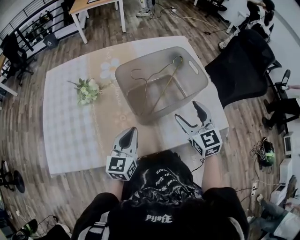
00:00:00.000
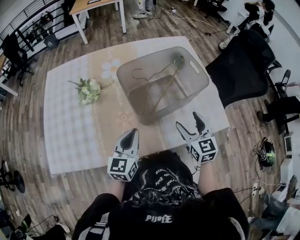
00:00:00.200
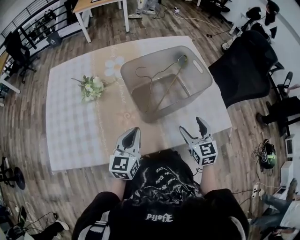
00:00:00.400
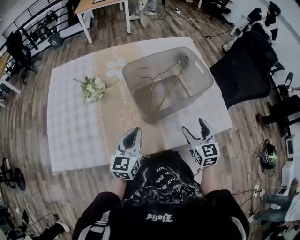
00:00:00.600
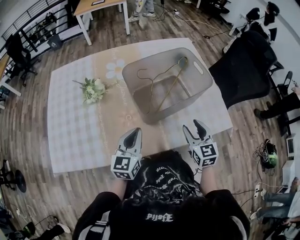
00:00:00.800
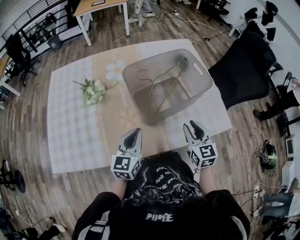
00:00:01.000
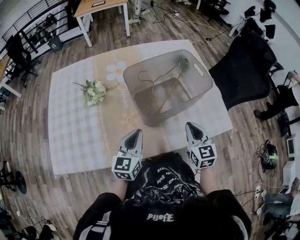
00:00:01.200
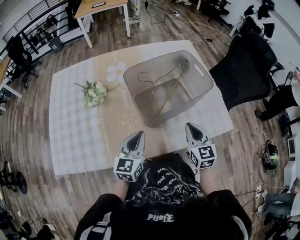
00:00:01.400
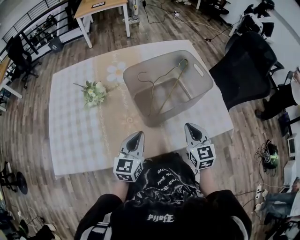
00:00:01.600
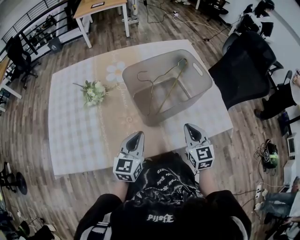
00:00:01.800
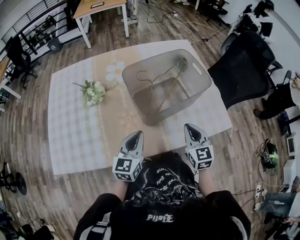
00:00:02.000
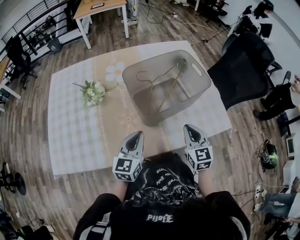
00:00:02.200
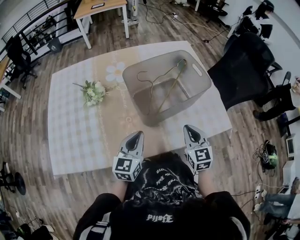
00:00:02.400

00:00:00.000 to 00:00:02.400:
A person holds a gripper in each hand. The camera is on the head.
00:00:00.000 to 00:00:01.200: The right gripper goes about 5 cm downward, and closes.
00:00:01.200 to 00:00:02.400: There are only small adjustments of the grippers.

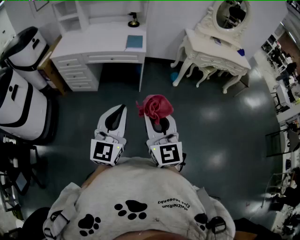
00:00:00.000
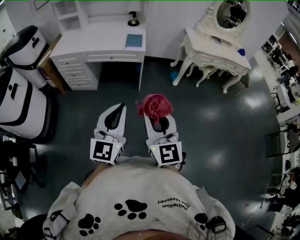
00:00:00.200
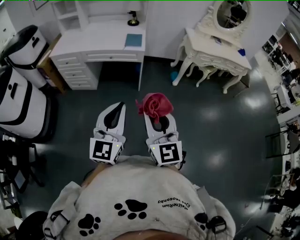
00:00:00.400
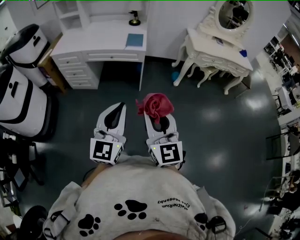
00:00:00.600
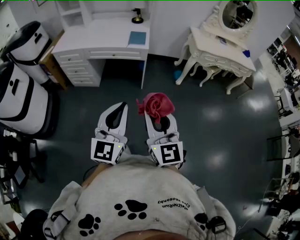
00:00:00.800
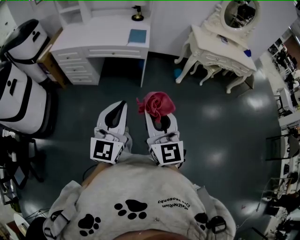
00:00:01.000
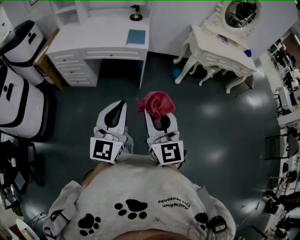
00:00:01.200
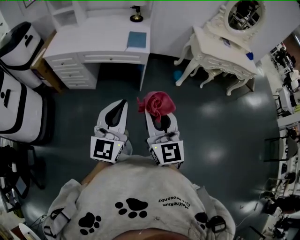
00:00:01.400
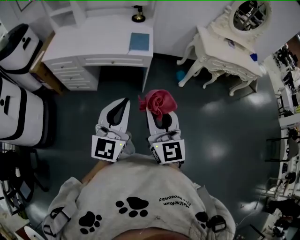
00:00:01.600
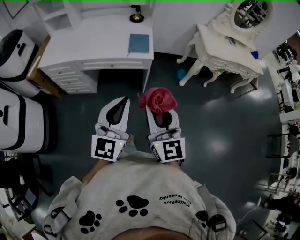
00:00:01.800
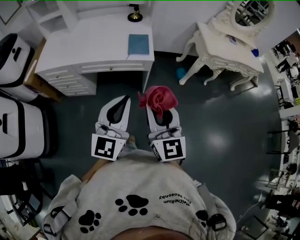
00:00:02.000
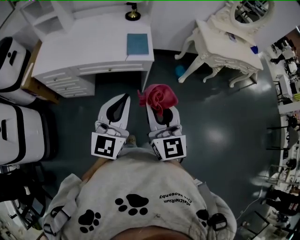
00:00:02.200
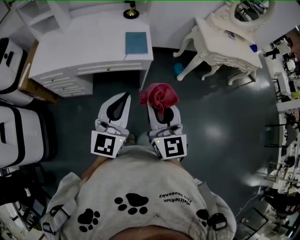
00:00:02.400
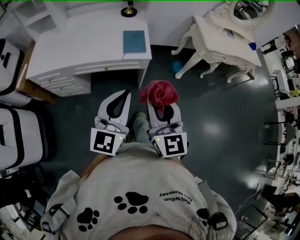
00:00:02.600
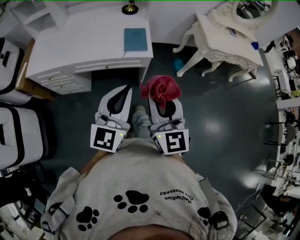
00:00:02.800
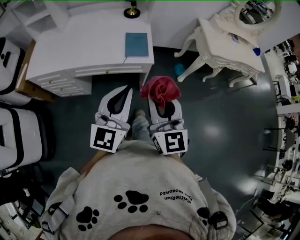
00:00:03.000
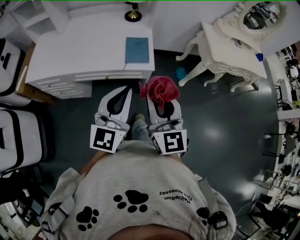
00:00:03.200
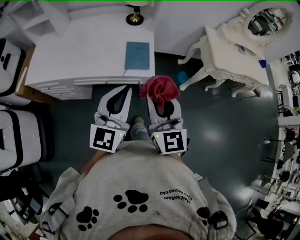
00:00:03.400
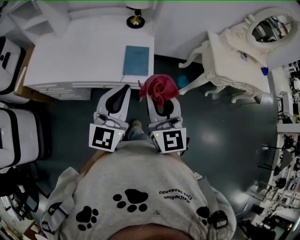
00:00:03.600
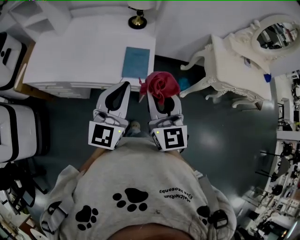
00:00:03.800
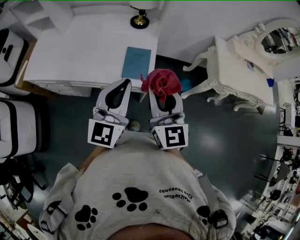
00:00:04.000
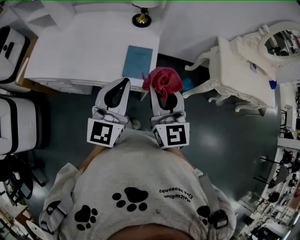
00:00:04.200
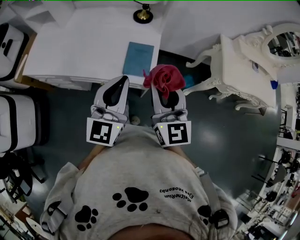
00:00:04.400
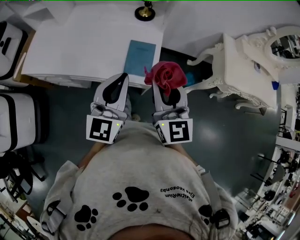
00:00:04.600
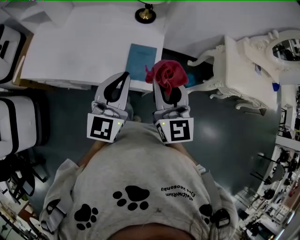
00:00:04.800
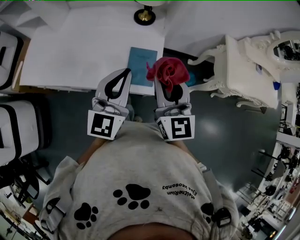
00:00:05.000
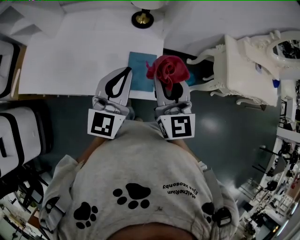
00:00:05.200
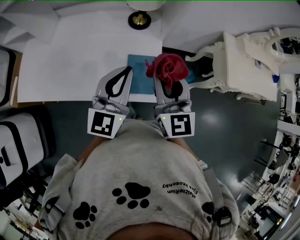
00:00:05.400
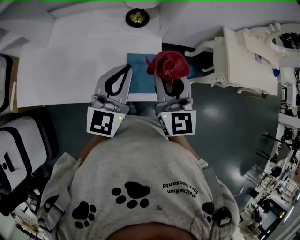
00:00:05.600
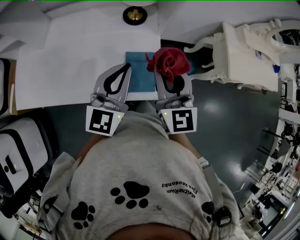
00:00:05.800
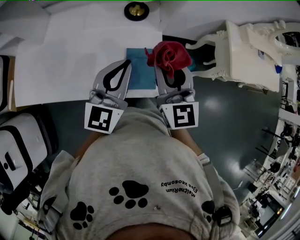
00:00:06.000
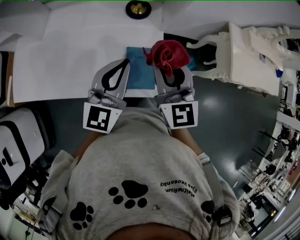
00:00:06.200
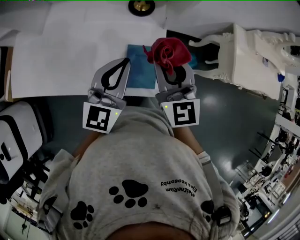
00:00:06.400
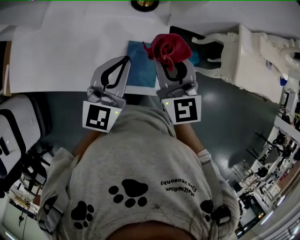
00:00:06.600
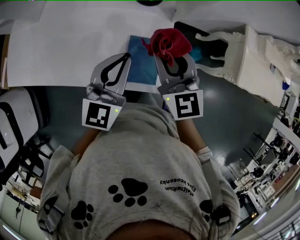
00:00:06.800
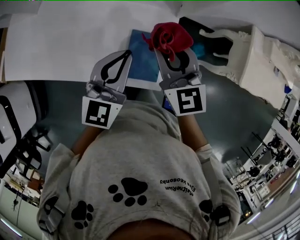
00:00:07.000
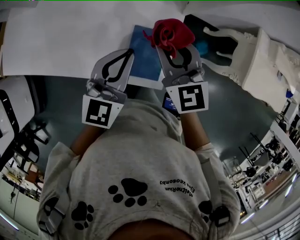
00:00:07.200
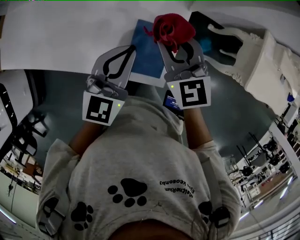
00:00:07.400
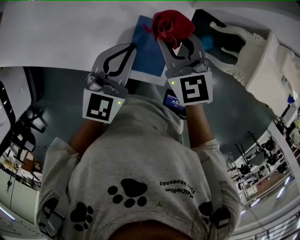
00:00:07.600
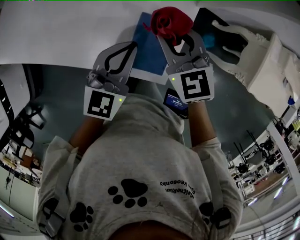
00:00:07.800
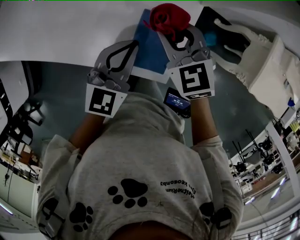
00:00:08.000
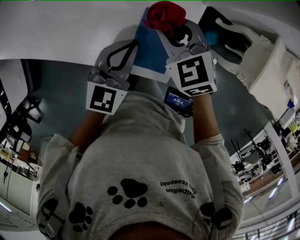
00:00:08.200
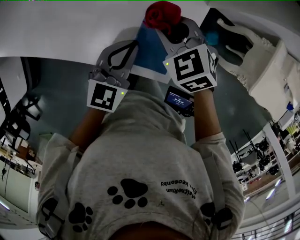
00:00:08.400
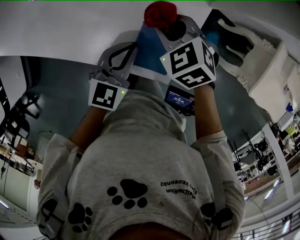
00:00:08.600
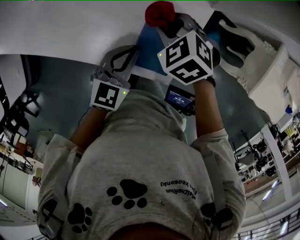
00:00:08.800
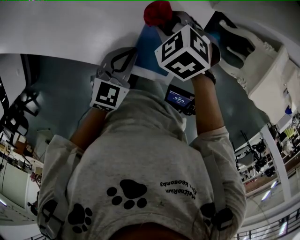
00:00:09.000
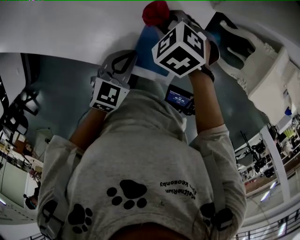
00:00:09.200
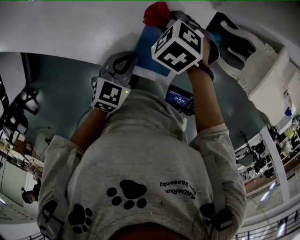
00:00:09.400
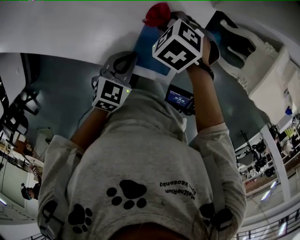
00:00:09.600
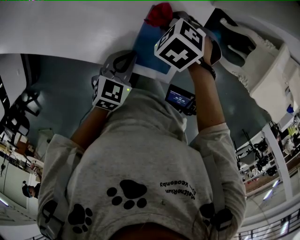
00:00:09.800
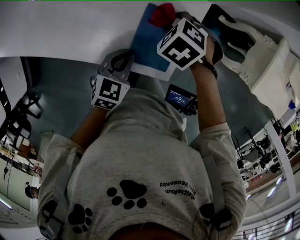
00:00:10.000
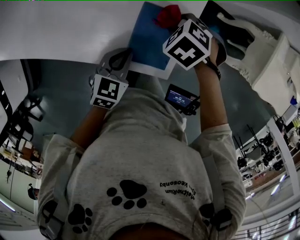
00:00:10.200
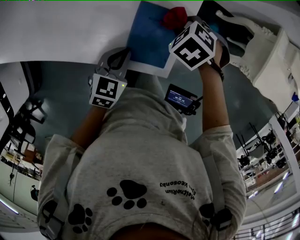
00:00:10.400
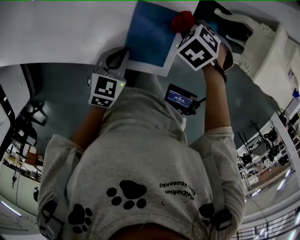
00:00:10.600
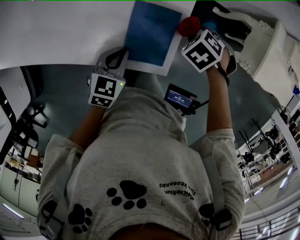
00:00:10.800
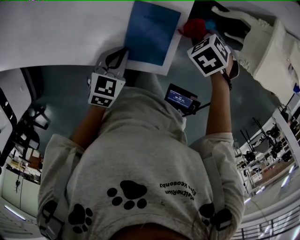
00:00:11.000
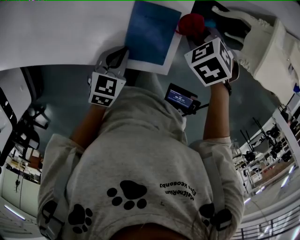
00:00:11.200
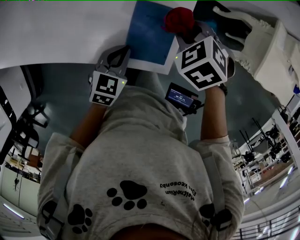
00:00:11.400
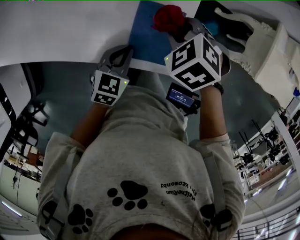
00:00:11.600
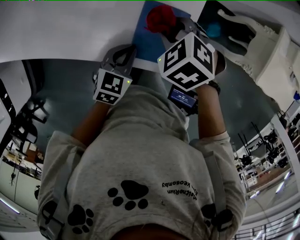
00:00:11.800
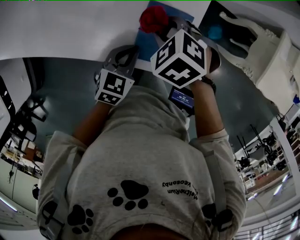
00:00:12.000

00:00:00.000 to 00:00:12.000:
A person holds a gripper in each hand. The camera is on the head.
00:00:00.000 to 00:00:01.600: The grippers both shift forward by about 20 cm.
00:00:01.600 to 00:00:03.000: Both grippers travel together forward, approximately 20 cm.
00:00:03.000 to 00:00:04.400: The grippers both shift forward by some 20 cm.
00:00:04.400 to 00:00:06.000: The grippers both shift forward by roughly 20 cm.
00:00:06.000 to 00:00:07.600: The left gripper shifts some 15 cm downward, while the right gripper heads downward and forward, covering some 15 cm, and swivels roughly 40 degrees.
00:00:07.600 to 00:00:09.000: Both grippers move downward, approximately 15 cm. The right gripper tips its fingers downward by approximately 40 degrees.
00:00:09.000 to 00:00:10.400: The right gripper moves roughly 10 cm.
00:00:10.400 to 00:00:12.000: The right gripper moves some 10 cm.

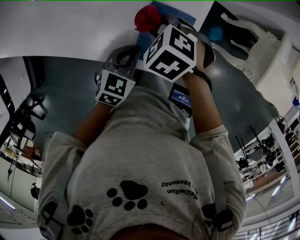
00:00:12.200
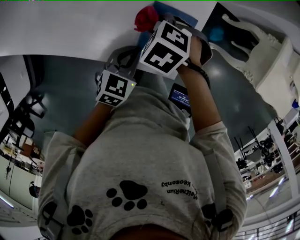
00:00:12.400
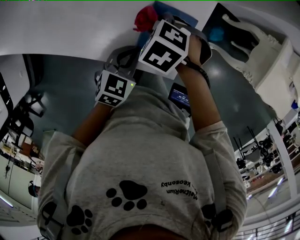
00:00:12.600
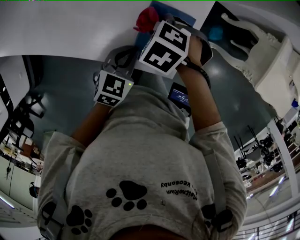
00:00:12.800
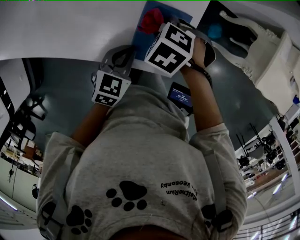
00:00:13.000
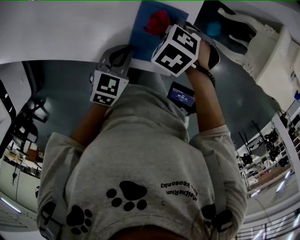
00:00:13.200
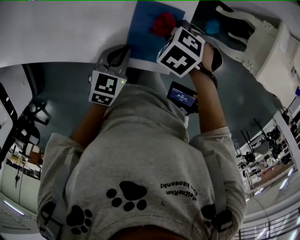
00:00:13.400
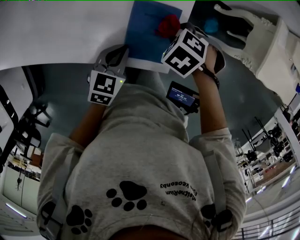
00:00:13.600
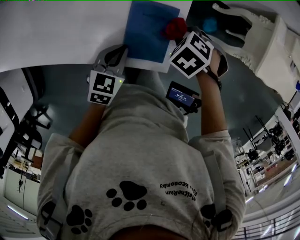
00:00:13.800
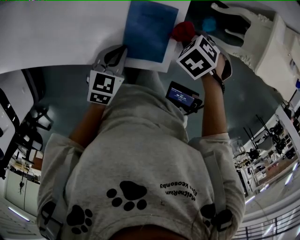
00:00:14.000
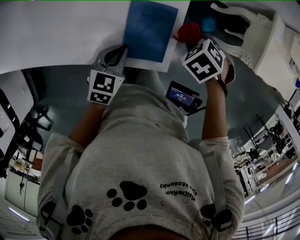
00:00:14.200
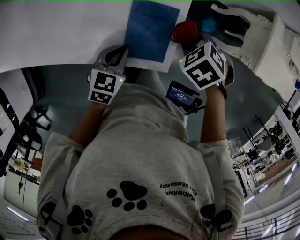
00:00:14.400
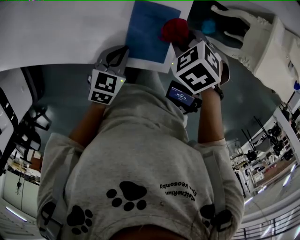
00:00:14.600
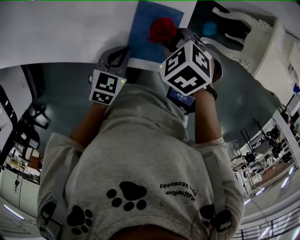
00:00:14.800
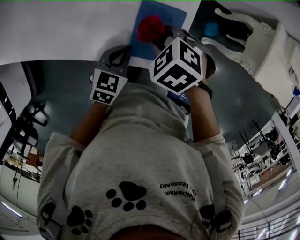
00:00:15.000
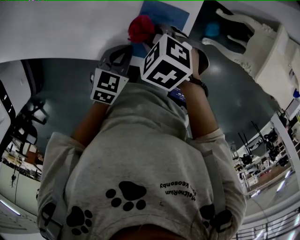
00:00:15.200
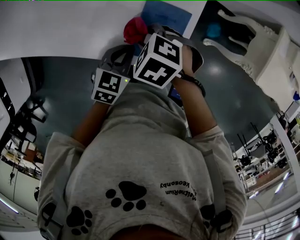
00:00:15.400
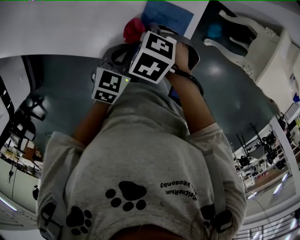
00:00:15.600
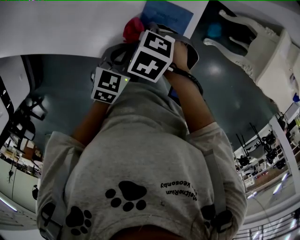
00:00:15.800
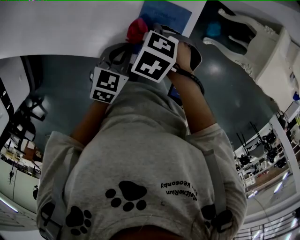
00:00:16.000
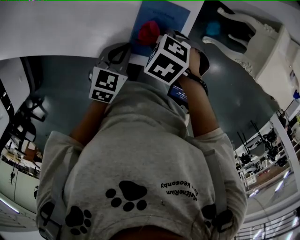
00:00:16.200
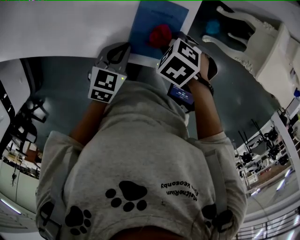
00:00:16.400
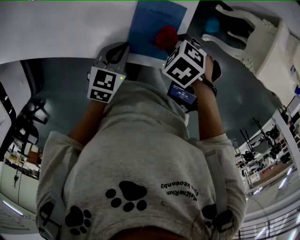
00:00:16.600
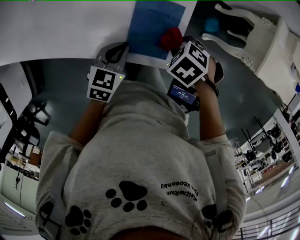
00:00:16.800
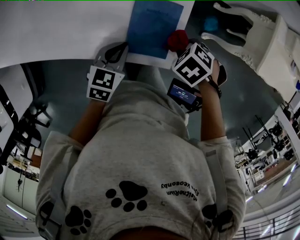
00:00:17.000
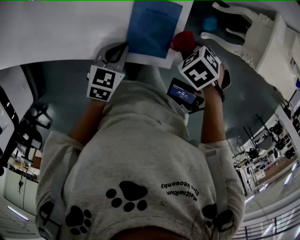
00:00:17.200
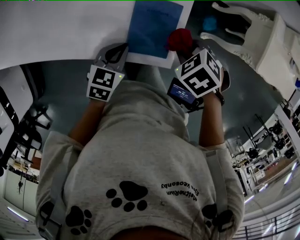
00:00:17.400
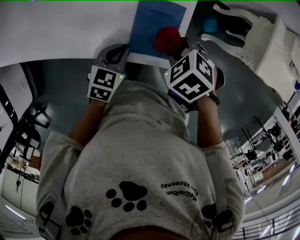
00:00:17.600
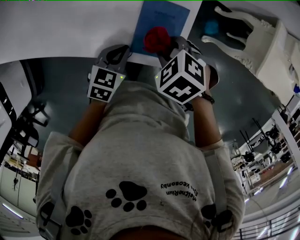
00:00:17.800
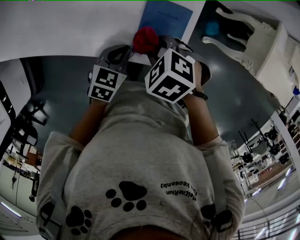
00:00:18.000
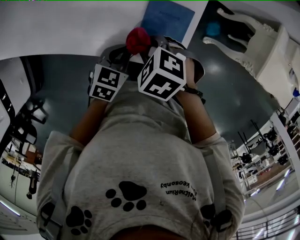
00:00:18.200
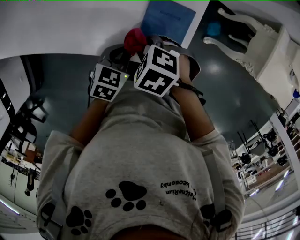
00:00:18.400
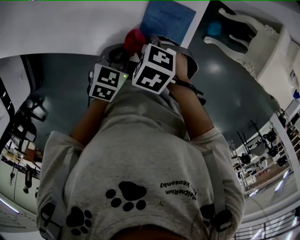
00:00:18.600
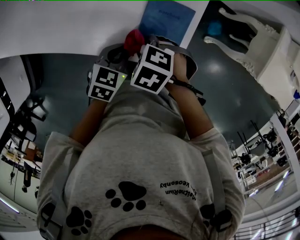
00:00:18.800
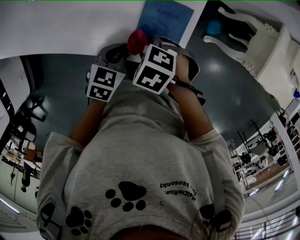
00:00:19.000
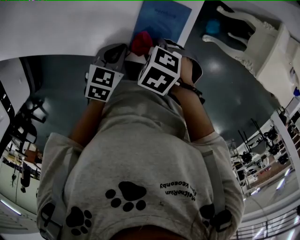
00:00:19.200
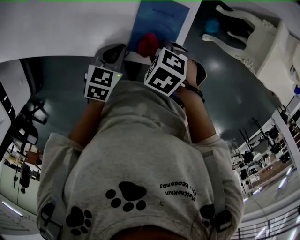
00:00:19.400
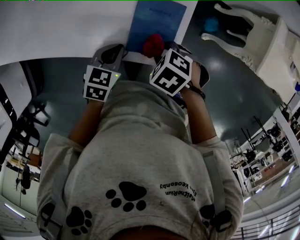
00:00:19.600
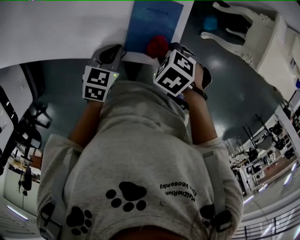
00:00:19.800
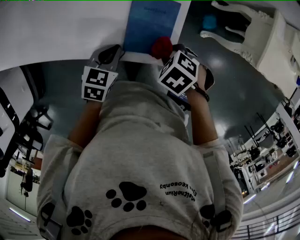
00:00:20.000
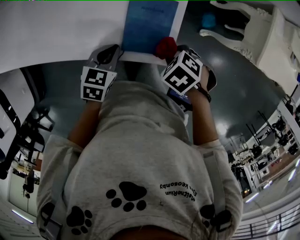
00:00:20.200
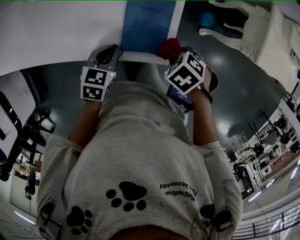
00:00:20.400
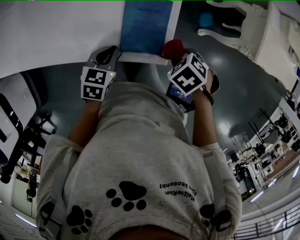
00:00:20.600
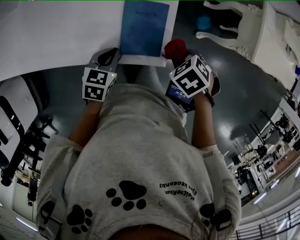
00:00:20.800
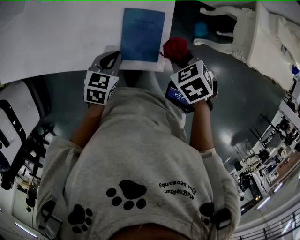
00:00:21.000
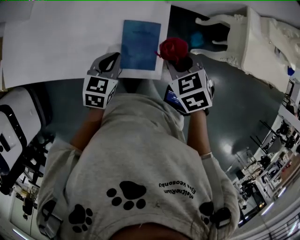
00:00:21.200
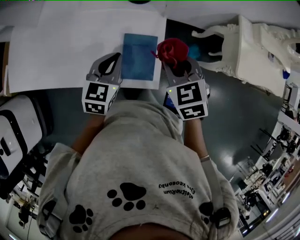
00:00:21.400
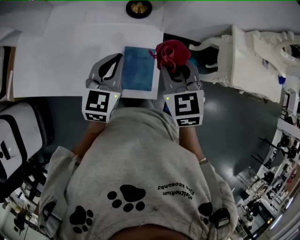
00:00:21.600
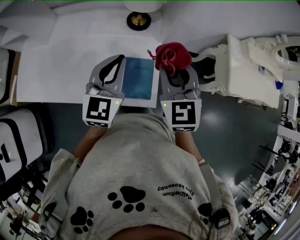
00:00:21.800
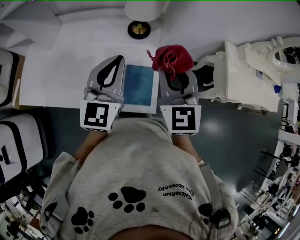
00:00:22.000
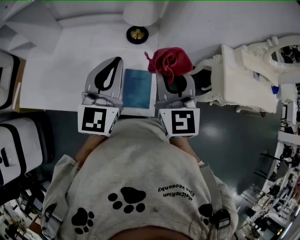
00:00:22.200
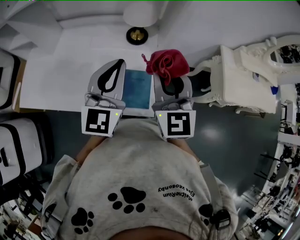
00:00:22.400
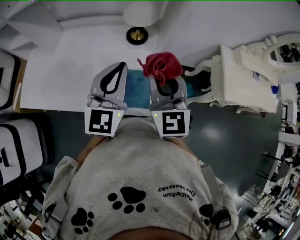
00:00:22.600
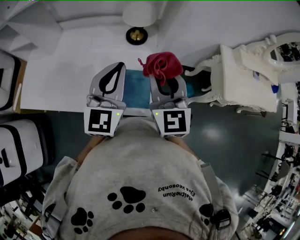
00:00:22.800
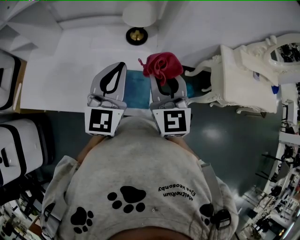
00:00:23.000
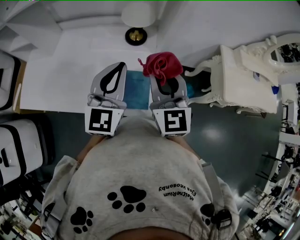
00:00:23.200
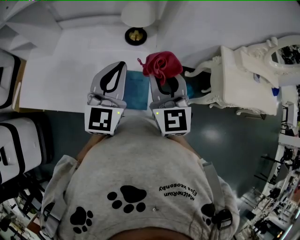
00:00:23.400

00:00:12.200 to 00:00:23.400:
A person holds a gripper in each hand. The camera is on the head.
00:00:12.200 to 00:00:13.800: The right gripper moves about 15 cm.
00:00:13.800 to 00:00:15.400: The right gripper ends up about 15 cm from where it was, and changes its angle by approximately 20 degrees.
00:00:15.400 to 00:00:17.000: The right gripper moves about 15 cm, and rotates some 20 degrees.
00:00:17.000 to 00:00:18.600: The right gripper changes place by about 15 cm, and turns by roughly 20 degrees.
00:00:18.600 to 00:00:20.200: The right gripper changes place by some 15 cm, and changes its angle by approximately 20 degrees.
00:00:20.200 to 00:00:21.800: The two grippers go approximately 30 cm upward. The right gripper points its fingers about 60 degrees further upward; the left gripper points its fingers about 40 degrees further upward.
00:00:21.800 to 00:00:23.400: The left gripper travels upward by approximately 5 cm.
